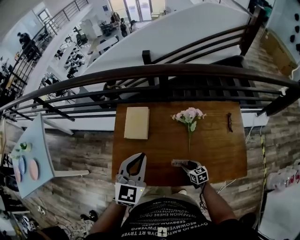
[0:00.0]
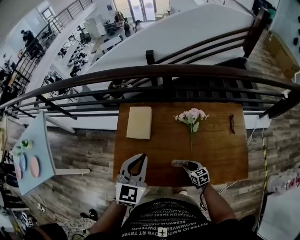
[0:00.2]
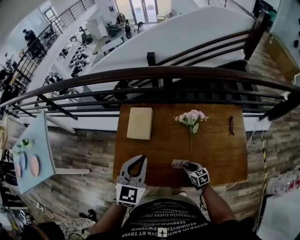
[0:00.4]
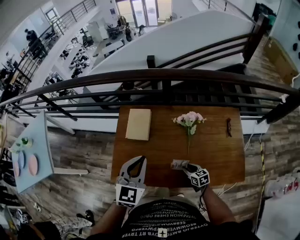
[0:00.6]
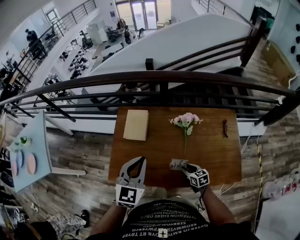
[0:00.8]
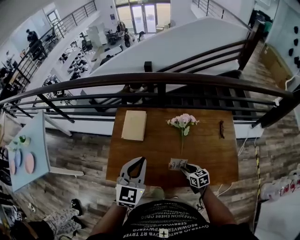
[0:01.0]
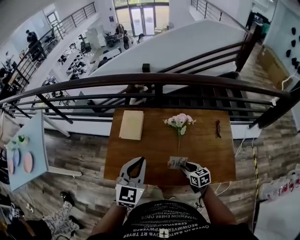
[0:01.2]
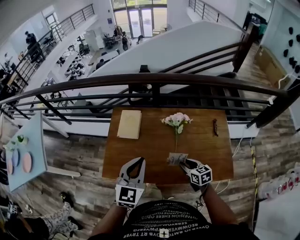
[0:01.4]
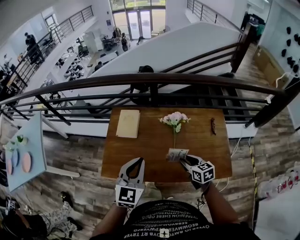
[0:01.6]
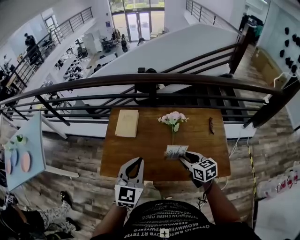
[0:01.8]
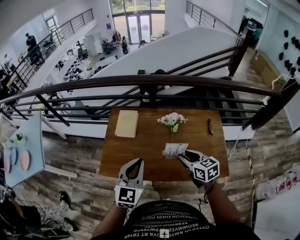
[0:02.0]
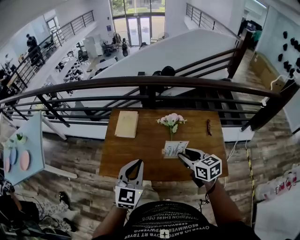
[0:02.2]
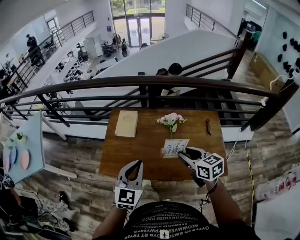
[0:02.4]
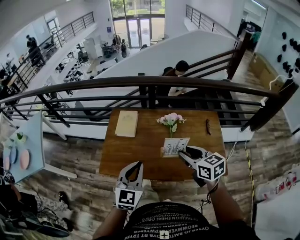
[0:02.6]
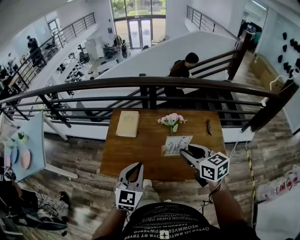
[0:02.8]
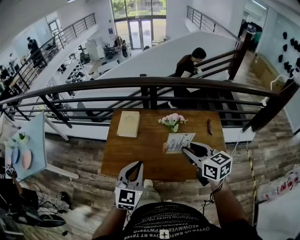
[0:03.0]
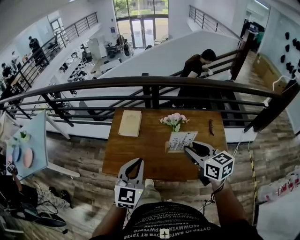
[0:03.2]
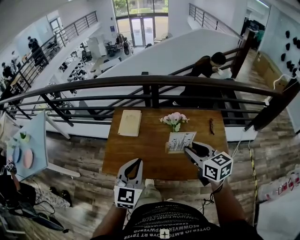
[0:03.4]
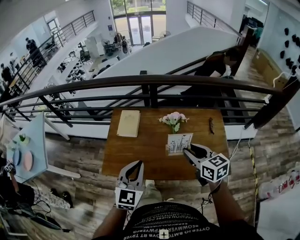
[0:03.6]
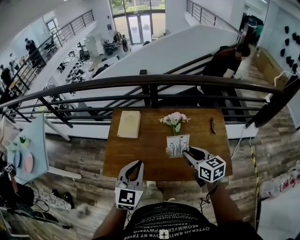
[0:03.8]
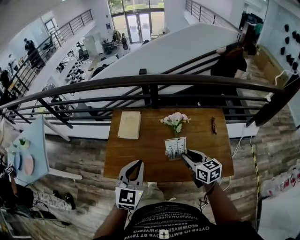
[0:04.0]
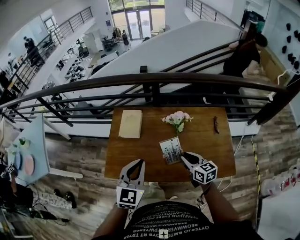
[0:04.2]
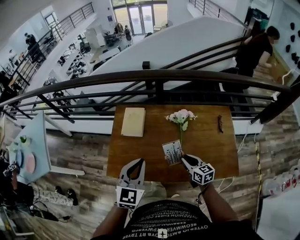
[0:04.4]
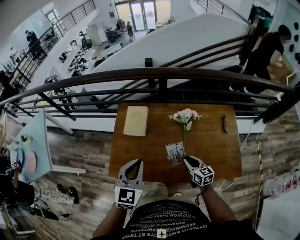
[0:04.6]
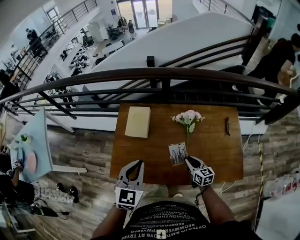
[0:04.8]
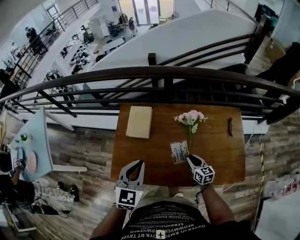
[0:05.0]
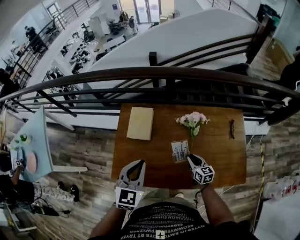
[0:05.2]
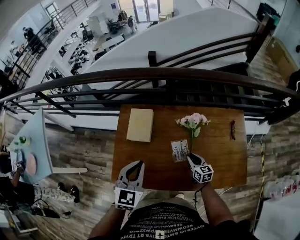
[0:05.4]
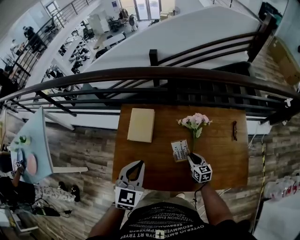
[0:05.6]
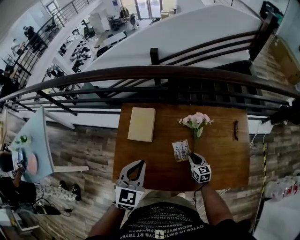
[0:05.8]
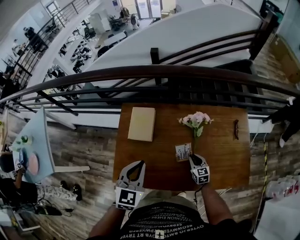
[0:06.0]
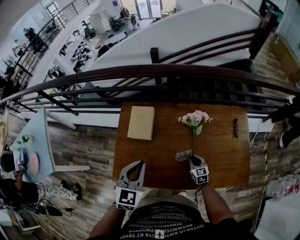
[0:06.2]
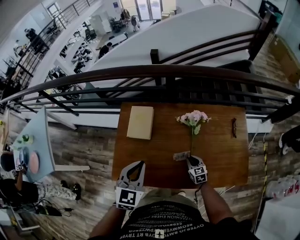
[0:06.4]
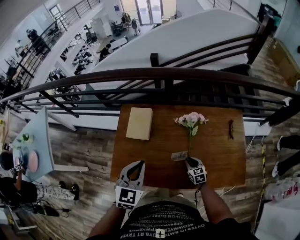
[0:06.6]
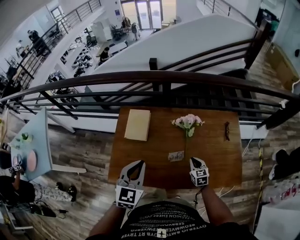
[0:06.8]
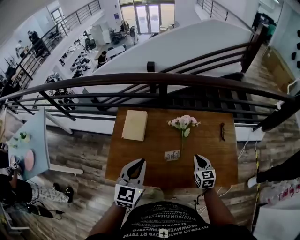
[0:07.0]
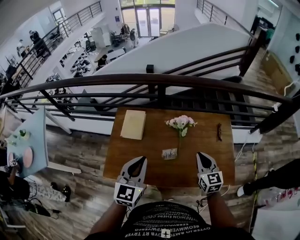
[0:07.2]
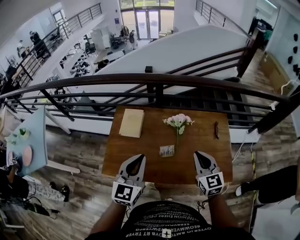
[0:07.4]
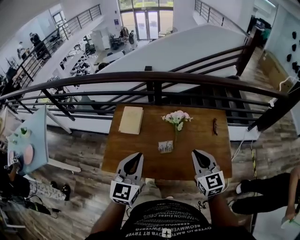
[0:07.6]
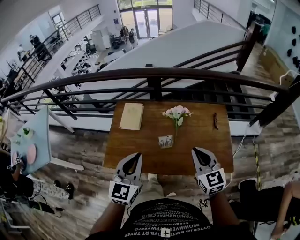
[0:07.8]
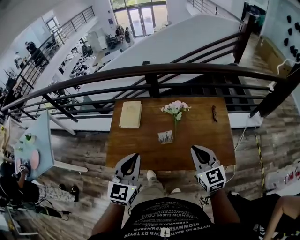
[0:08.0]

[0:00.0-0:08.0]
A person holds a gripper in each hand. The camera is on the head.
0:00.0 to 0:01.6: The left gripper moves backward, approximately 10 cm; the right gripper moves upward, some 20 cm.
0:01.6 to 0:03.2: The right gripper moves upward, approximately 20 cm; the left gripper shifts some 5 cm backward.
0:03.2 to 0:04.8: The right gripper goes approximately 30 cm downward. Meanwhile the left gripper shifts about 10 cm forward and downward.
0:04.8 to 0:06.4: The left gripper moves approximately 5 cm. The right gripper is displaced downward by some 10 cm, and changes its angle by approximately 20 degrees.
0:06.4 to 0:08.0: The left gripper heads backward, upward and to the right, covering approximately 20 cm. The right gripper is displaced upward and backward by approximately 40 cm, and turns by roughly 30 degrees.

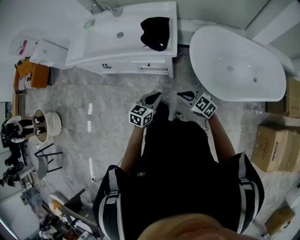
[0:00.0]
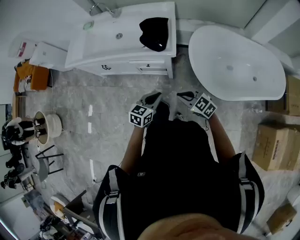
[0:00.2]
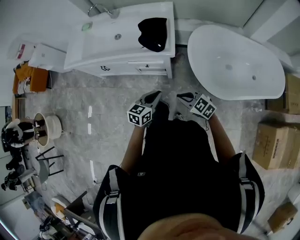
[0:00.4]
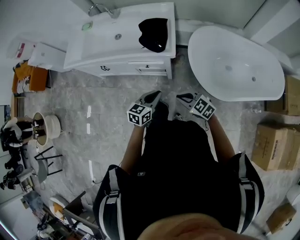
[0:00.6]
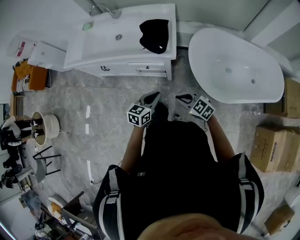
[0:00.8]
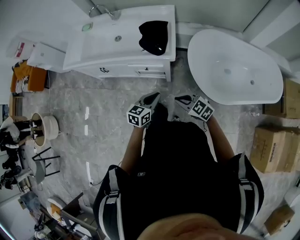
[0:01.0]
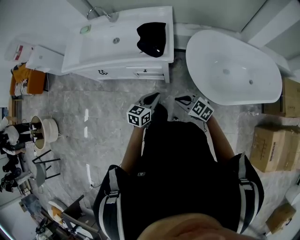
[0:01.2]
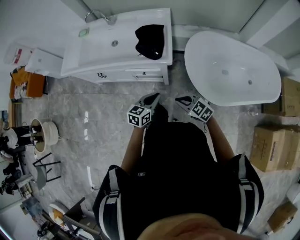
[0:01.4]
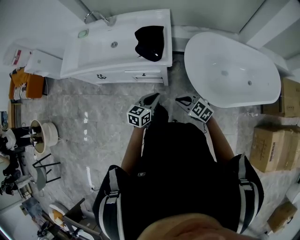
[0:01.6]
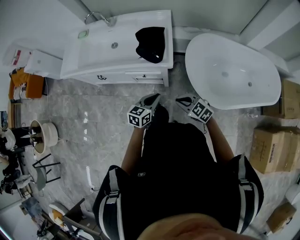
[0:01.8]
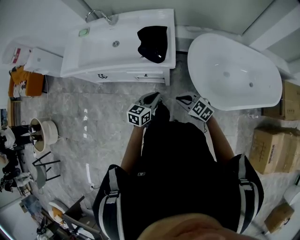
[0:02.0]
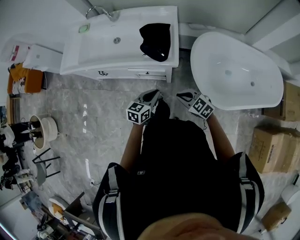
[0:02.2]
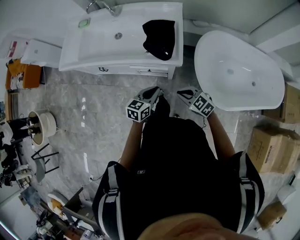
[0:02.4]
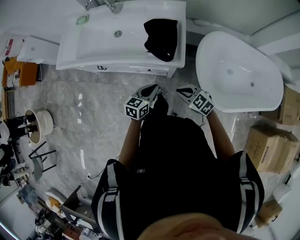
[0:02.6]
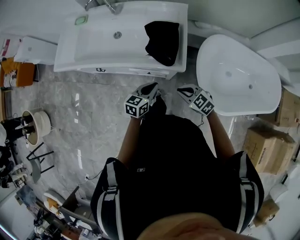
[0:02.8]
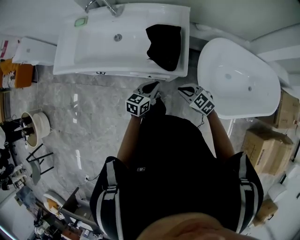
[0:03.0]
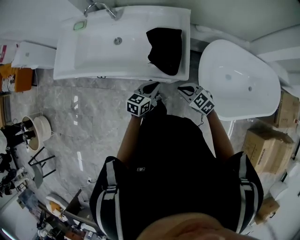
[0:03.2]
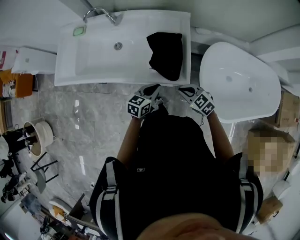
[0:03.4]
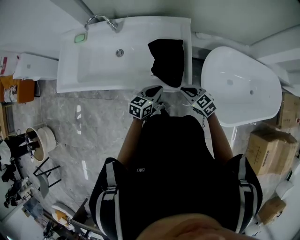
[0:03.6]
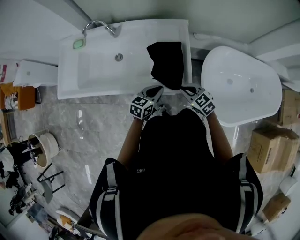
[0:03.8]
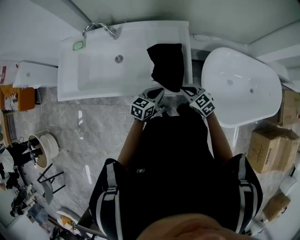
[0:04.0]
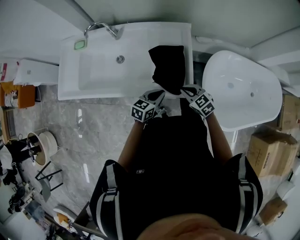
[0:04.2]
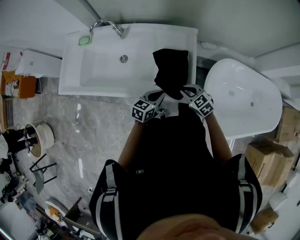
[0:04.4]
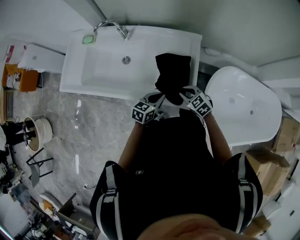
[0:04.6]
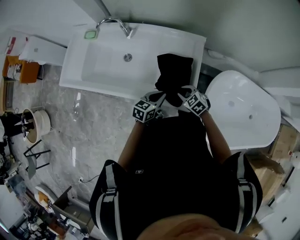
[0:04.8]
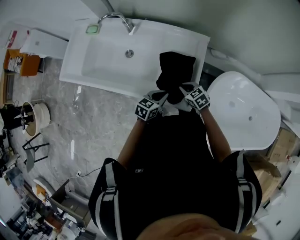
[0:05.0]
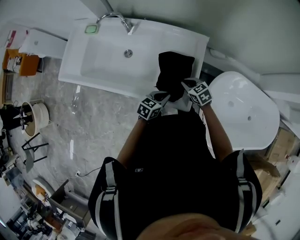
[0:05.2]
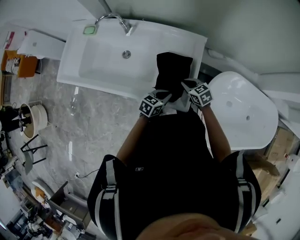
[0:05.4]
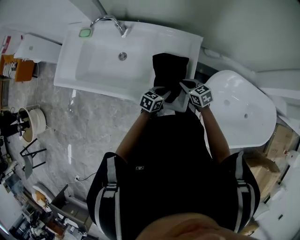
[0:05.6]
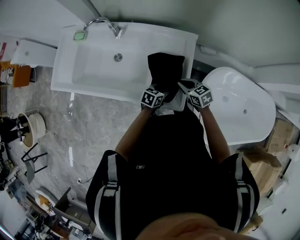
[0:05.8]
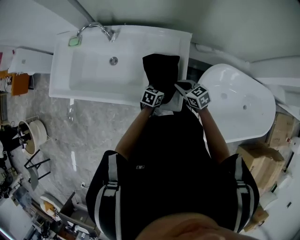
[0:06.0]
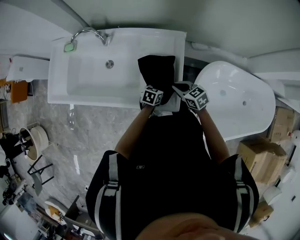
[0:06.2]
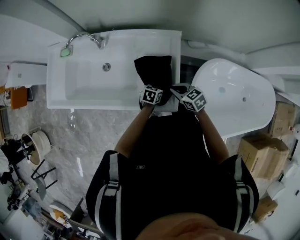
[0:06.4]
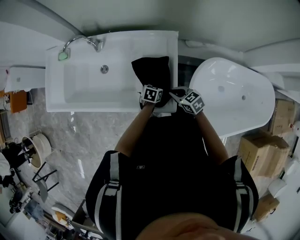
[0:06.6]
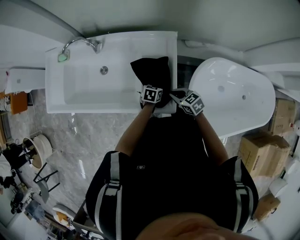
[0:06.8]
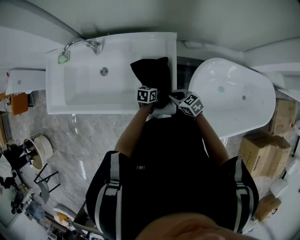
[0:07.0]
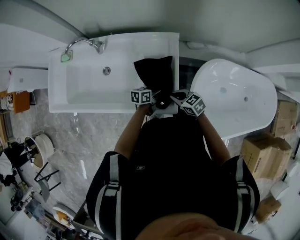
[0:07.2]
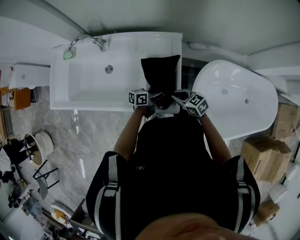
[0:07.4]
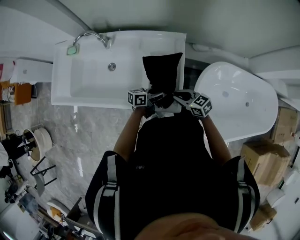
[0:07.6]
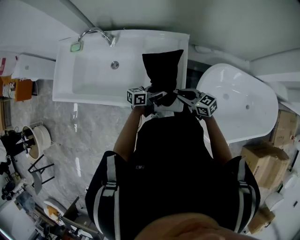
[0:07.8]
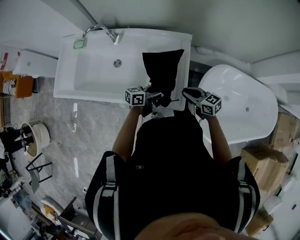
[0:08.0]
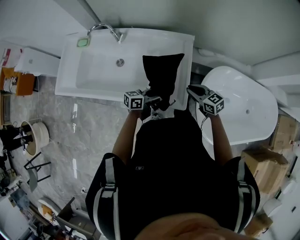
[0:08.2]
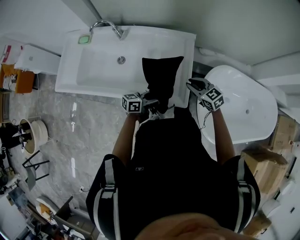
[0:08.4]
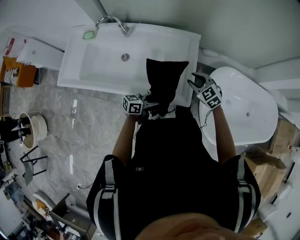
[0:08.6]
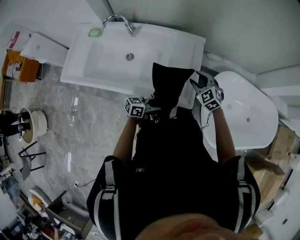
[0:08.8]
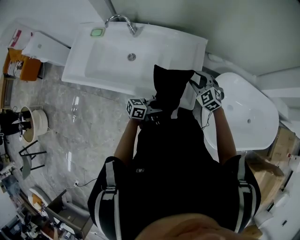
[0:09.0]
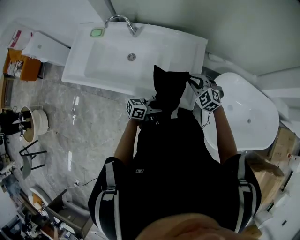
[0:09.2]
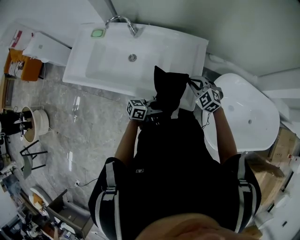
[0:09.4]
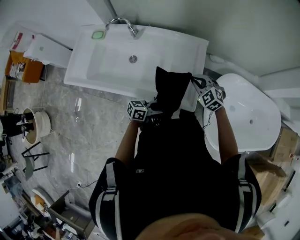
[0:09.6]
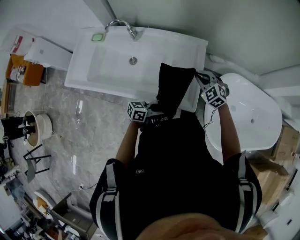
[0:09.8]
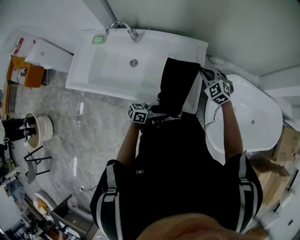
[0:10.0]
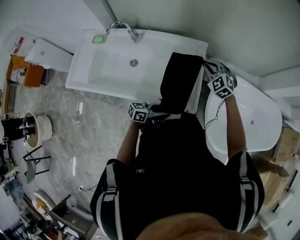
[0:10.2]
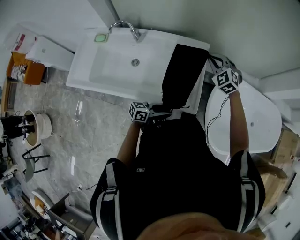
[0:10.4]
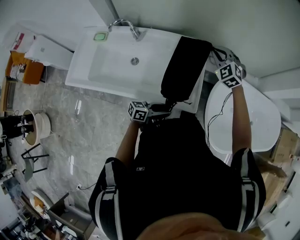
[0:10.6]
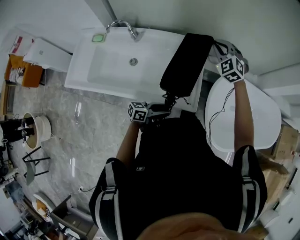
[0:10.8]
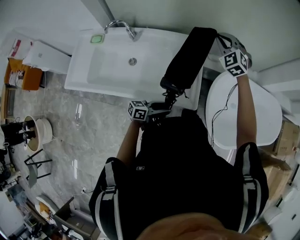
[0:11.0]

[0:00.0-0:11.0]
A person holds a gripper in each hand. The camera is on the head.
0:00.0 to 0:01.6: The left gripper travels forward by about 5 cm.
0:01.6 to 0:03.2: The grippers both shift forward by approximately 20 cm.
0:03.2 to 0:04.8: The right gripper heads forward and downward, covering about 20 cm. Meanwhile the left gripper moves forward, about 10 cm.
0:04.8 to 0:06.2: The right gripper goes roughly 5 cm upward, and changes its angle by about 30 degrees; the left gripper goes approximately 15 cm downward, to the right and forward, and opens its fingers.
0:06.2 to 0:07.8: The right gripper shifts by roughly 5 cm. The left gripper heads upward, covering about 10 cm, and tilts its fingers roughly 40 degrees upward.
0:07.8 to 0:09.4: The right gripper moves about 5 cm, rolls counterclockwise, seen from behind, by approximately 50 degrees, and opens, then closes once more. Meanwhile the left gripper changes place by about 15 cm.
0:09.4 to 0:11.0: The right gripper goes about 25 cm forward and upward, and swivels about 30 degrees.

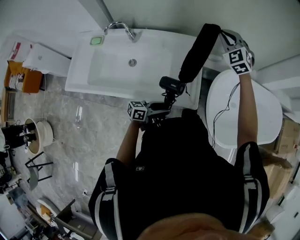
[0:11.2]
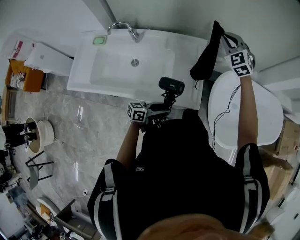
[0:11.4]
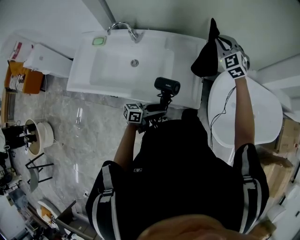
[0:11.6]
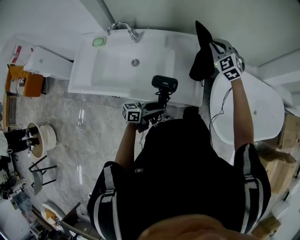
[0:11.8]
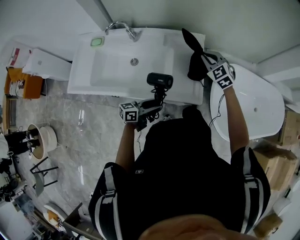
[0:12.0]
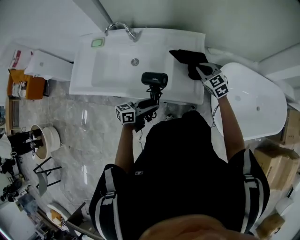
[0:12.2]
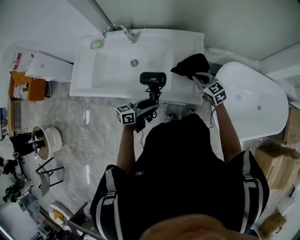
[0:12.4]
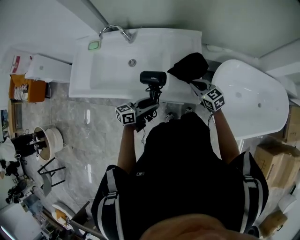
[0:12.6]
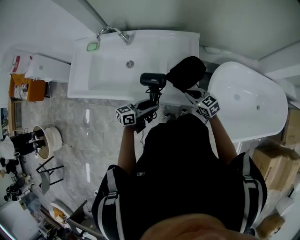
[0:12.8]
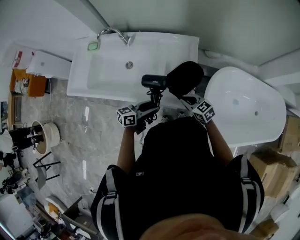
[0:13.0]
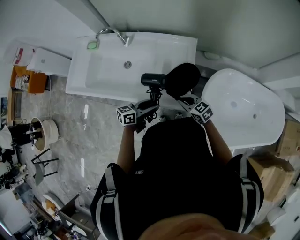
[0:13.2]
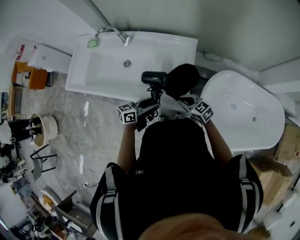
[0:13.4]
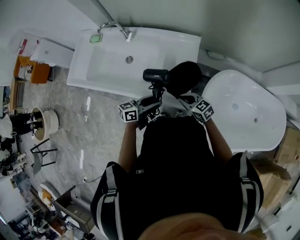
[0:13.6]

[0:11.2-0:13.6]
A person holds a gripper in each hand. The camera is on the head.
0:11.2 to 0:12.4: The right gripper moves downward and backward, some 30 cm, and turns by about 50 degrees. Meanwhile the left gripper is displaced to the left by some 10 cm.
0:12.4 to 0:13.6: The left gripper travels to the right by approximately 10 cm. The right gripper shifts about 10 cm backward and downward, and rotates roughly 20 degrees.

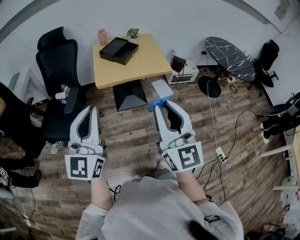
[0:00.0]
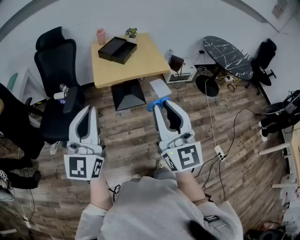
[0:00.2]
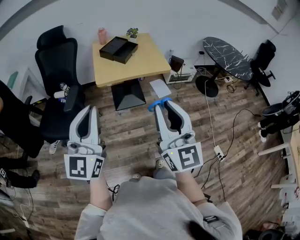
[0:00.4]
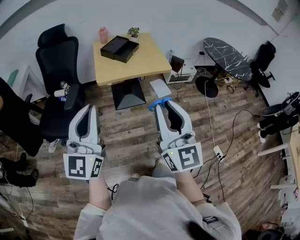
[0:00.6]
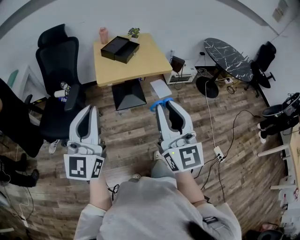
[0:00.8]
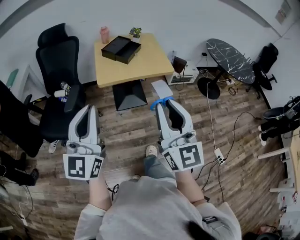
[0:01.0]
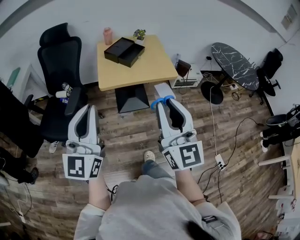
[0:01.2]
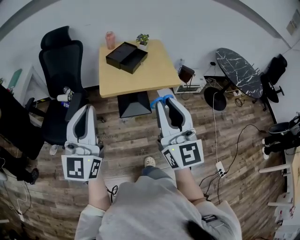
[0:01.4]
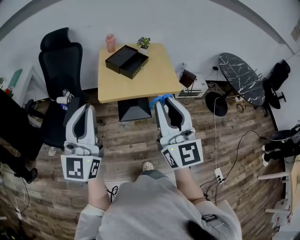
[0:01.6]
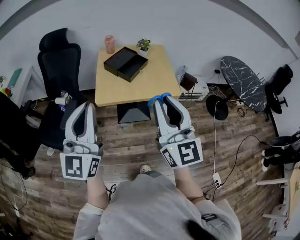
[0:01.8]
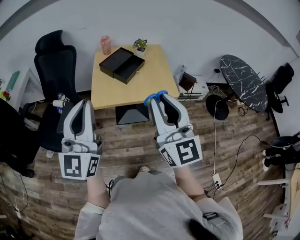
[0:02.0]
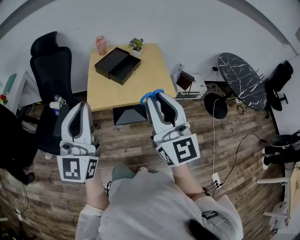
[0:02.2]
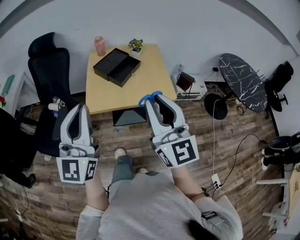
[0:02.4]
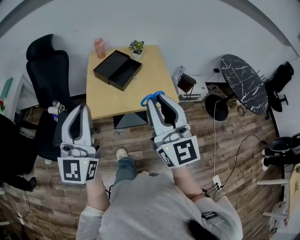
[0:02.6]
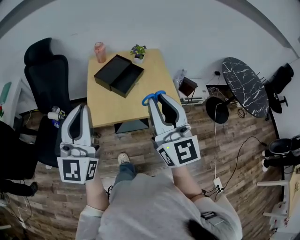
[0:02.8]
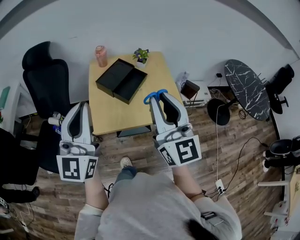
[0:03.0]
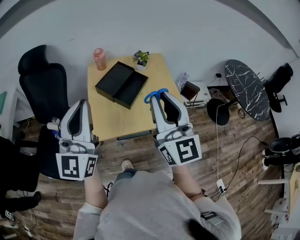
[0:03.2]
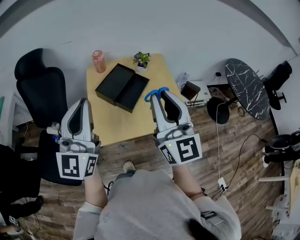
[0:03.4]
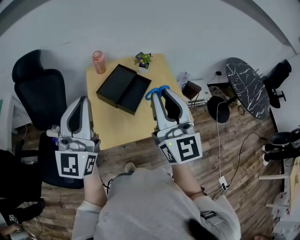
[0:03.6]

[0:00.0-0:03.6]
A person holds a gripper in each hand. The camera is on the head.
0:00.0 to 0:01.8: The grippers both shift forward by about 20 cm.
0:01.8 to 0:03.6: The two grippers go approximately 30 cm forward.
